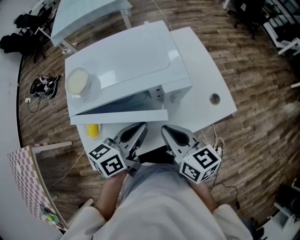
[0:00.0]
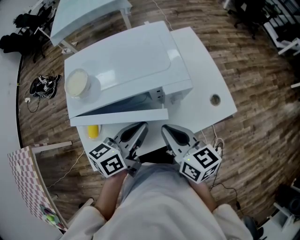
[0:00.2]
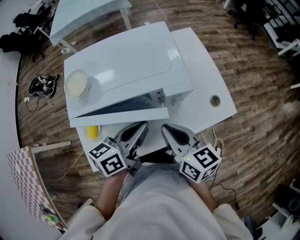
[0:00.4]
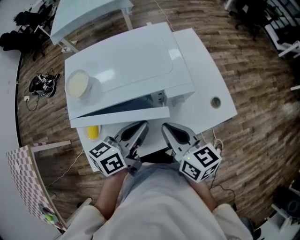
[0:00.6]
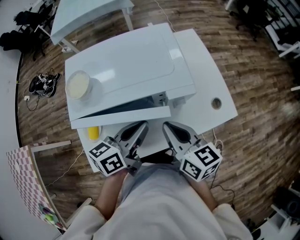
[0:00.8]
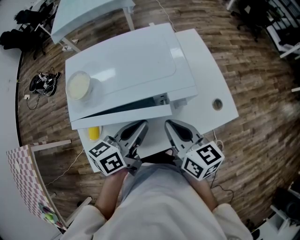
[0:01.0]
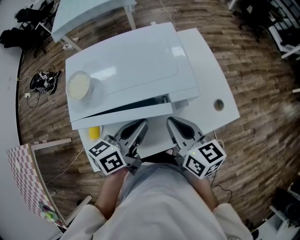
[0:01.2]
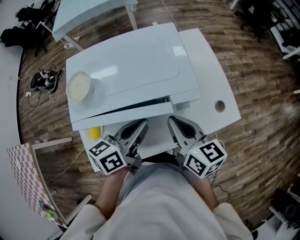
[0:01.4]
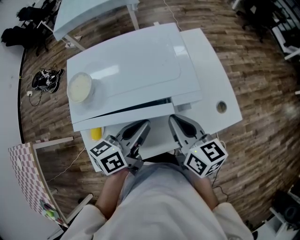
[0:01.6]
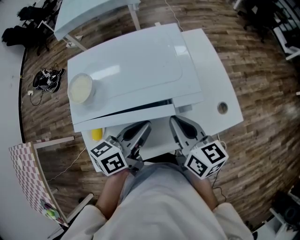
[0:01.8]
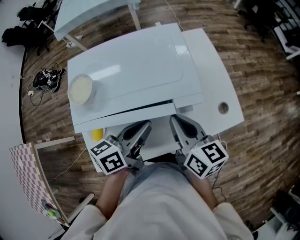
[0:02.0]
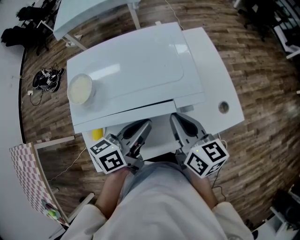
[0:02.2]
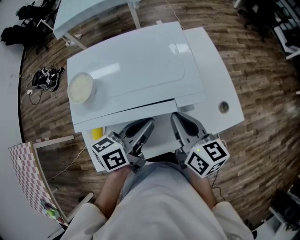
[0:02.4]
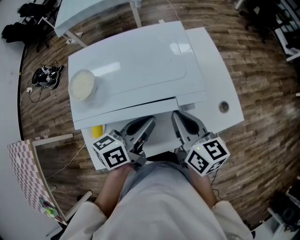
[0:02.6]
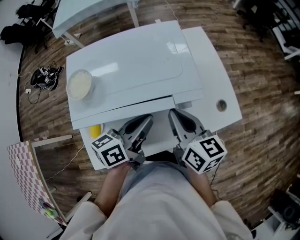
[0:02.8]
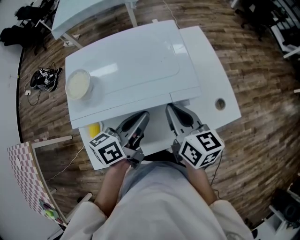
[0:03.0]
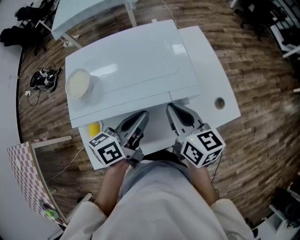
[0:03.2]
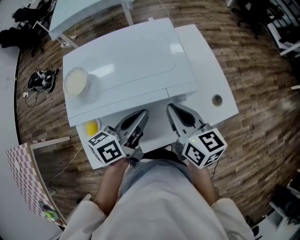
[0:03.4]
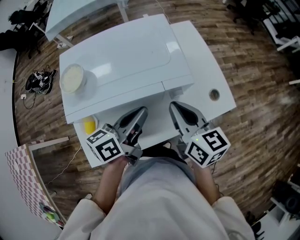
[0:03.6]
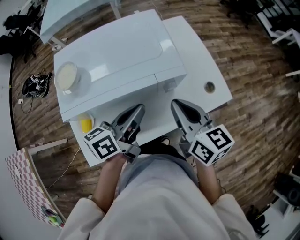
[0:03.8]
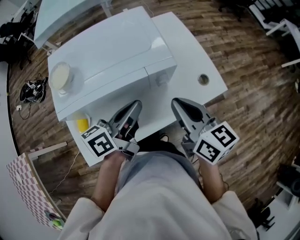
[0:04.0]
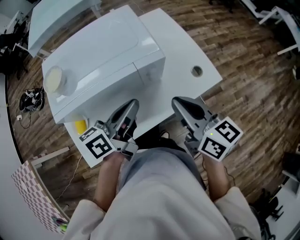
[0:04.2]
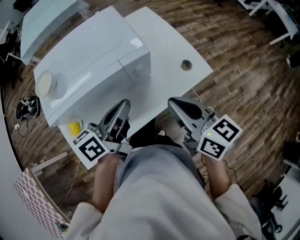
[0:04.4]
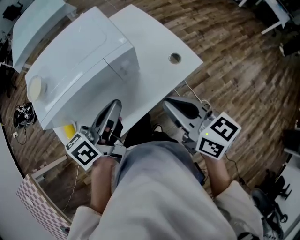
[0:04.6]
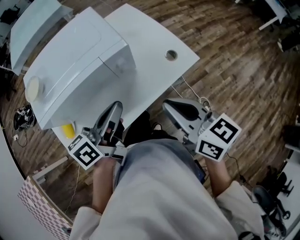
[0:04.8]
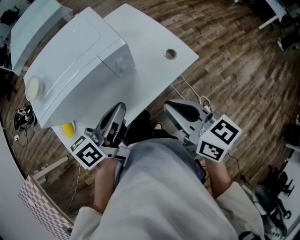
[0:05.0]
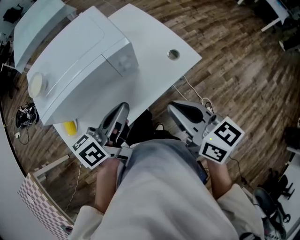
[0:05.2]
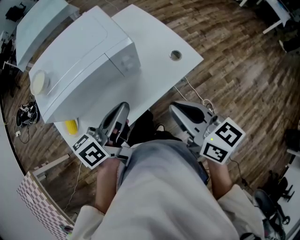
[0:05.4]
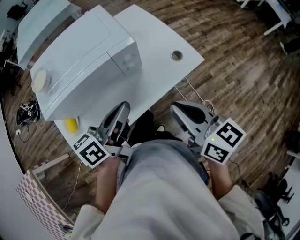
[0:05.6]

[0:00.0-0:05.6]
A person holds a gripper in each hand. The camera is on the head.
0:00.0 to 0:01.4: The right gripper moves forward, approximately 5 cm.
0:01.4 to 0:02.8: The grippers make only small movements.
0:02.8 to 0:04.2: The left gripper moves to the right, roughly 5 cm; the right gripper shifts approximately 15 cm to the right and backward.
0:04.2 to 0:05.6: The left gripper moves backward, about 5 cm. Meanwhile the right gripper heads backward and to the right, covering about 10 cm.

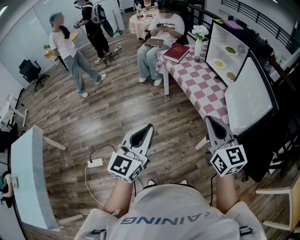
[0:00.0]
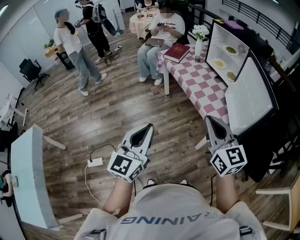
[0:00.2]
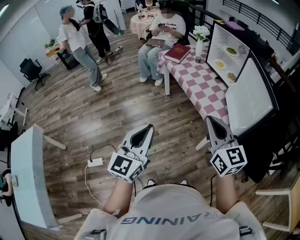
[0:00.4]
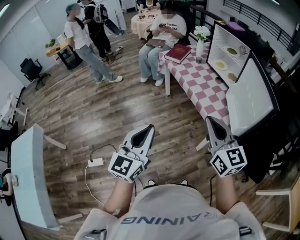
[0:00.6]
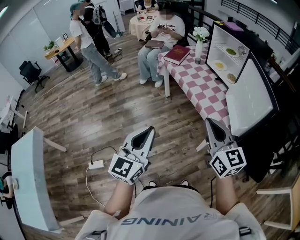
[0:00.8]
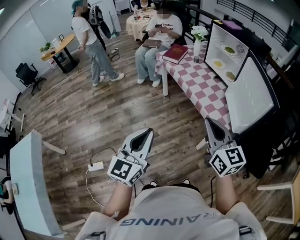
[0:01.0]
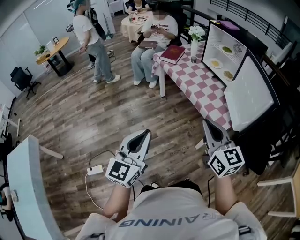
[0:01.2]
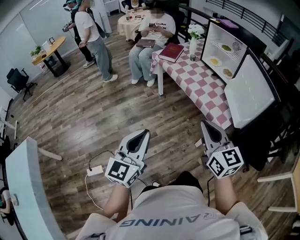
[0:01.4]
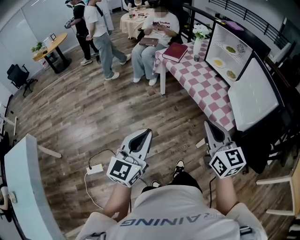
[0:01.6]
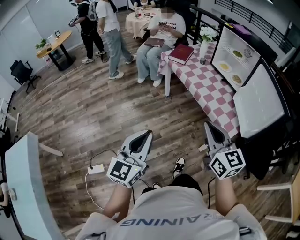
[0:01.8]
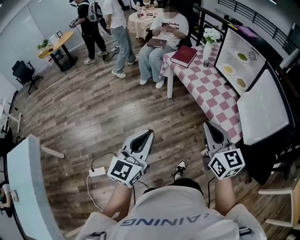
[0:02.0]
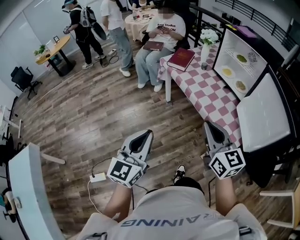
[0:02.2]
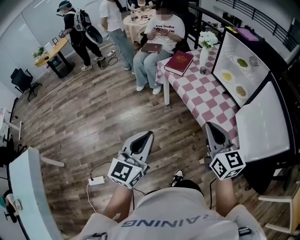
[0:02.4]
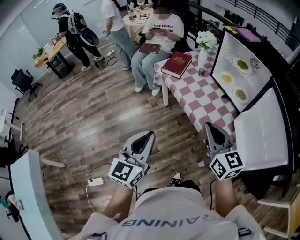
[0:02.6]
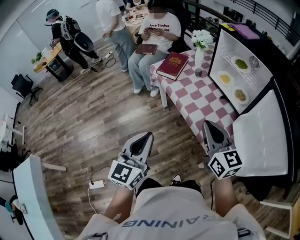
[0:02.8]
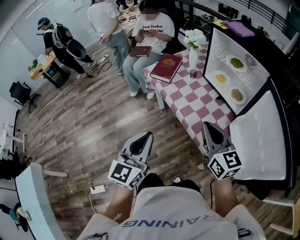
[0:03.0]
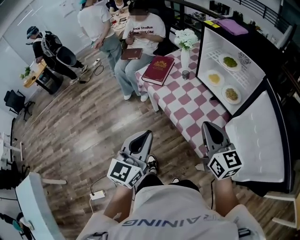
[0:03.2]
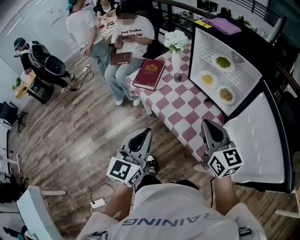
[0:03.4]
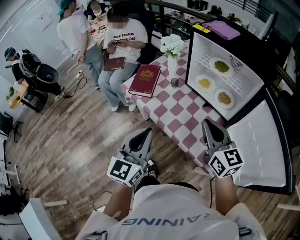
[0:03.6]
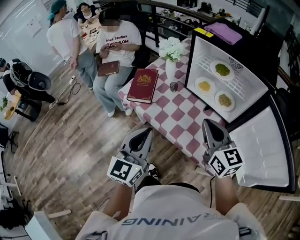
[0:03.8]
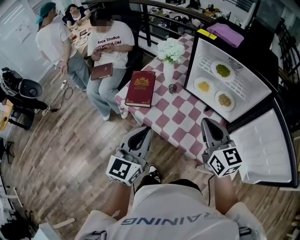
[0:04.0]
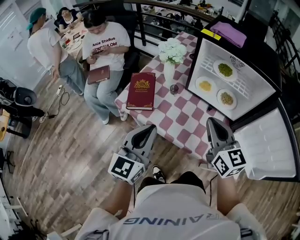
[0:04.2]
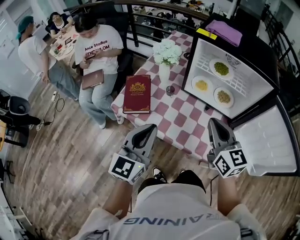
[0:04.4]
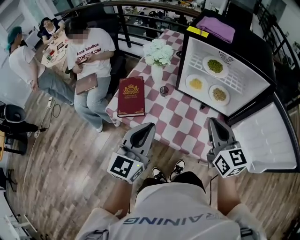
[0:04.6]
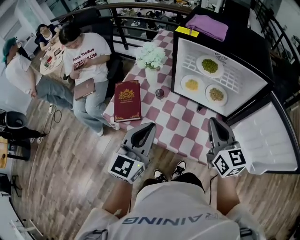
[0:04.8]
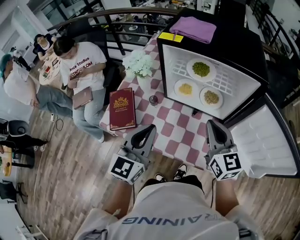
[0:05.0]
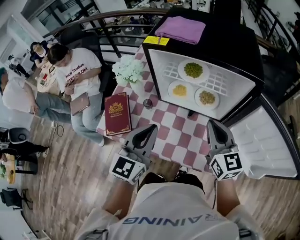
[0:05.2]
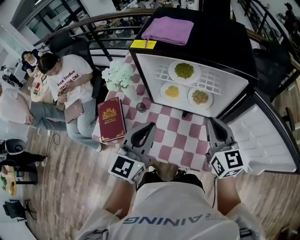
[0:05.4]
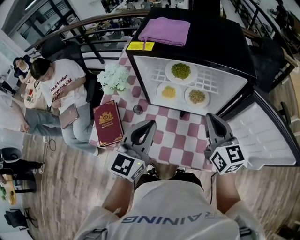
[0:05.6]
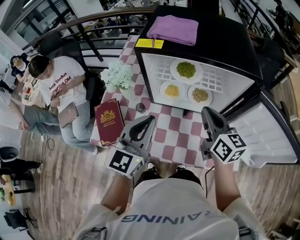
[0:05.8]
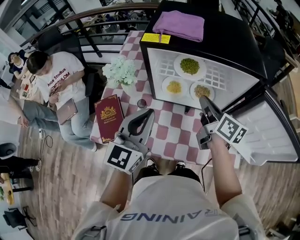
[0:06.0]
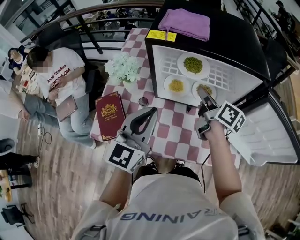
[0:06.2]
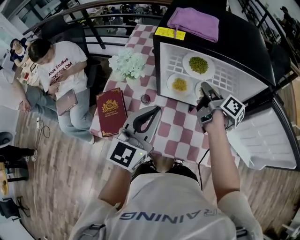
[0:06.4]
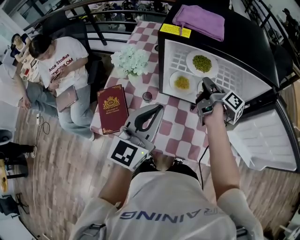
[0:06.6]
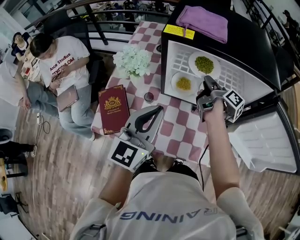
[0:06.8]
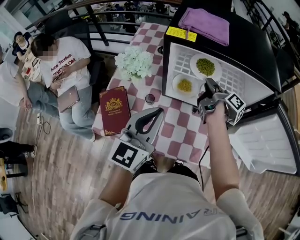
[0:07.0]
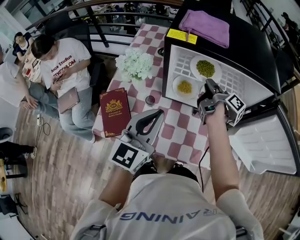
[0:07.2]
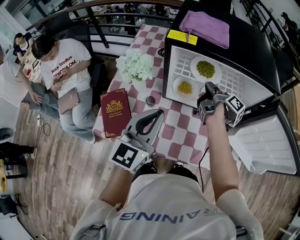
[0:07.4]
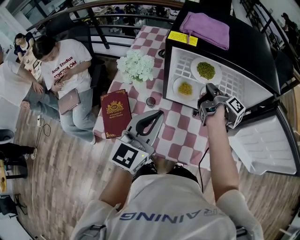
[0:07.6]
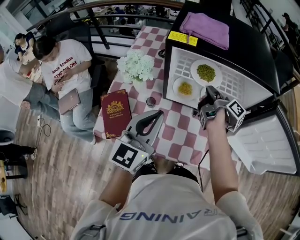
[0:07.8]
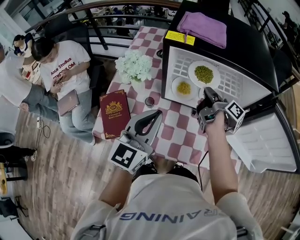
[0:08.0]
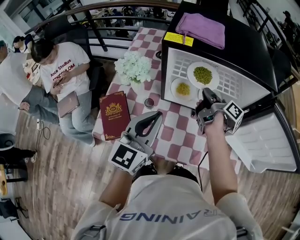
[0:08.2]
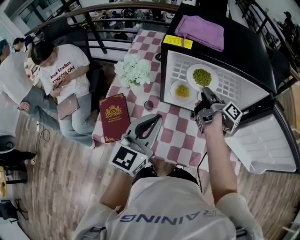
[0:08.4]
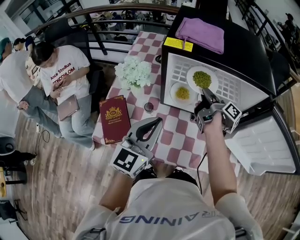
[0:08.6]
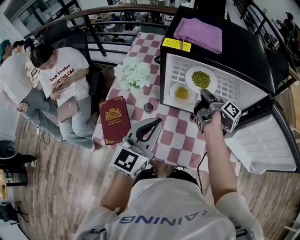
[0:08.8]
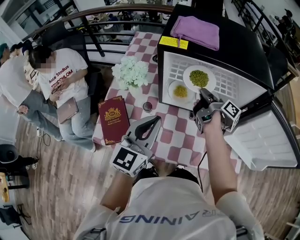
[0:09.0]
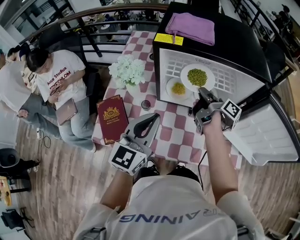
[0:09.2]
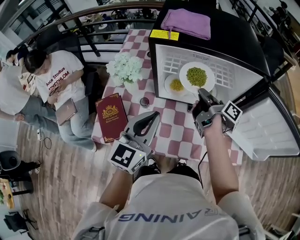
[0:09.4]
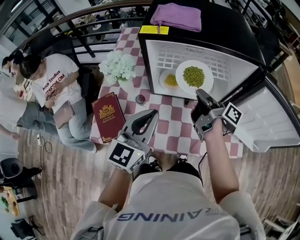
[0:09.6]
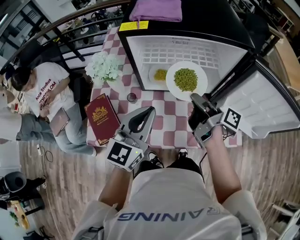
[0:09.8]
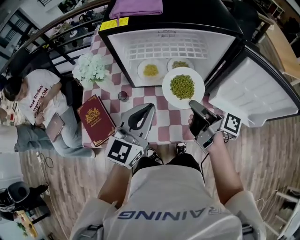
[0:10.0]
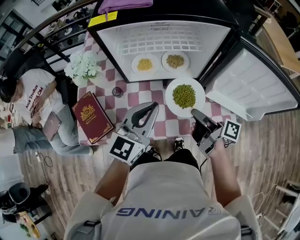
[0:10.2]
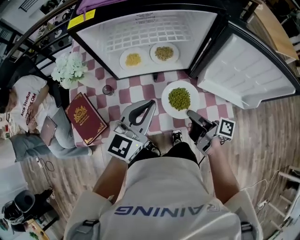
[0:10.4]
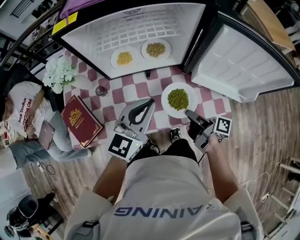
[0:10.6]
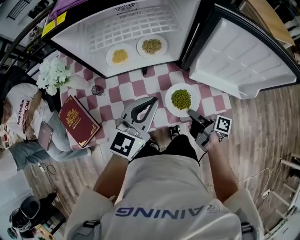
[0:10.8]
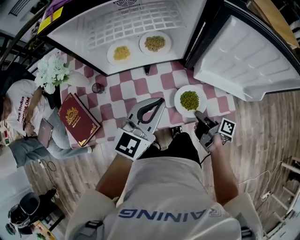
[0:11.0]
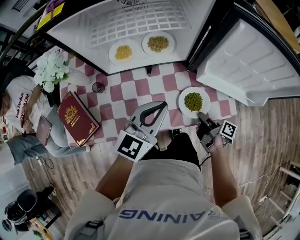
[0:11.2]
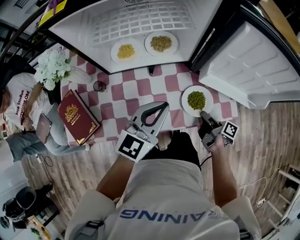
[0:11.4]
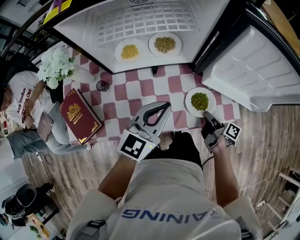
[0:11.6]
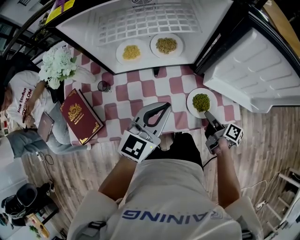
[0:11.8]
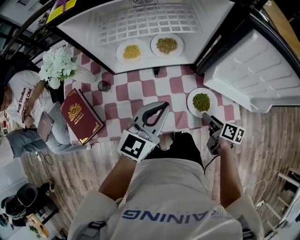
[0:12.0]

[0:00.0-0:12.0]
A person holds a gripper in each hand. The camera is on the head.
0:00.0 to 0:01.6: The two grippers go approximately 10 cm to the left.
0:01.6 to 0:03.0: Both grippers move forward, roughly 30 cm.
0:03.0 to 0:04.4: The right gripper moves about 20 cm, and swivels about 30 degrees, while the left gripper shifts by approximately 30 cm, and rotates roughly 30 degrees.
0:04.4 to 0:06.0: The two grippers go approximately 20 cm forward and to the right. The right gripper rotates roughly 40 degrees.
0:06.0 to 0:07.6: The right gripper travels forward and downward by some 10 cm, and twists roughly 50 degrees clockwise, seen from behind.
0:07.6 to 0:09.0: The grippers stay close to where they were, moving slightly.
0:09.0 to 0:10.4: The right gripper heads backward and to the right, covering some 30 cm, while the left gripper heads to the right and downward, covering roughly 15 cm, and rotates roughly 20 degrees.
0:10.4 to 0:12.0: The right gripper travels downward and to the right by about 15 cm, turns by some 40 degrees, and opens its fingers; the left gripper shifts some 5 cm downward.

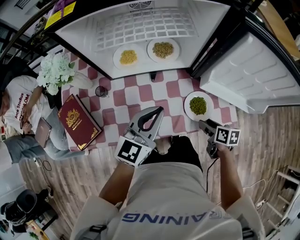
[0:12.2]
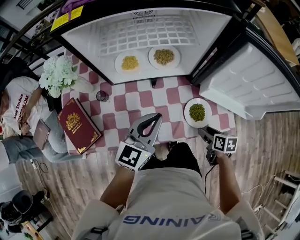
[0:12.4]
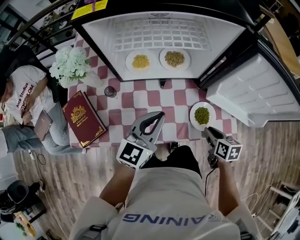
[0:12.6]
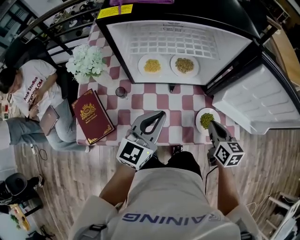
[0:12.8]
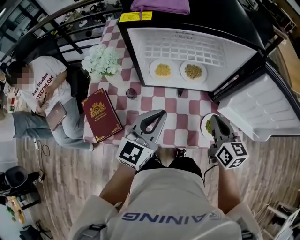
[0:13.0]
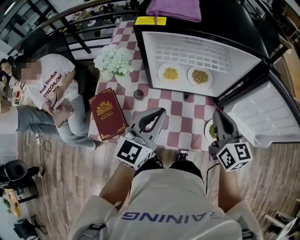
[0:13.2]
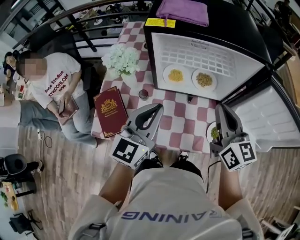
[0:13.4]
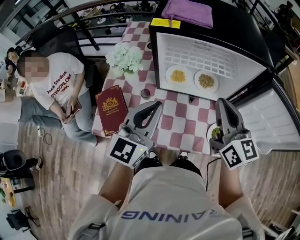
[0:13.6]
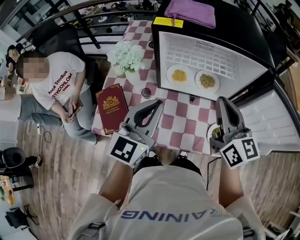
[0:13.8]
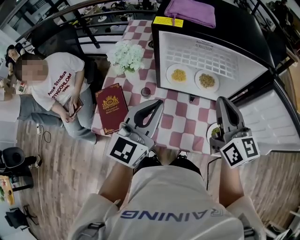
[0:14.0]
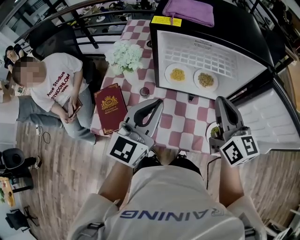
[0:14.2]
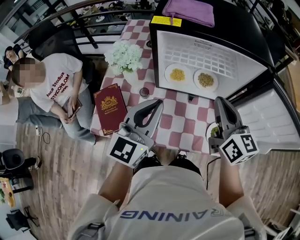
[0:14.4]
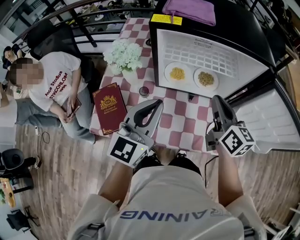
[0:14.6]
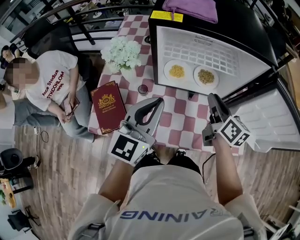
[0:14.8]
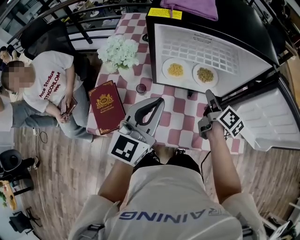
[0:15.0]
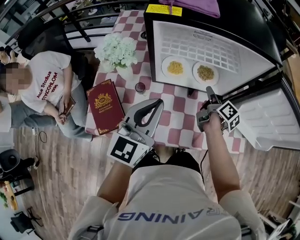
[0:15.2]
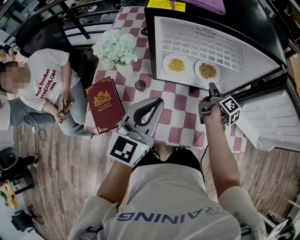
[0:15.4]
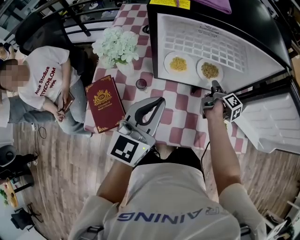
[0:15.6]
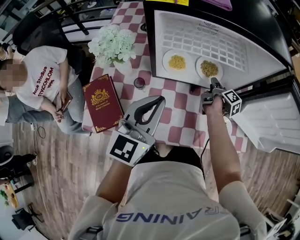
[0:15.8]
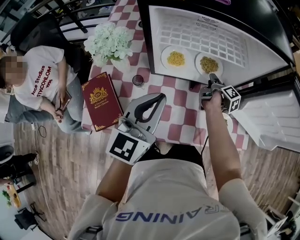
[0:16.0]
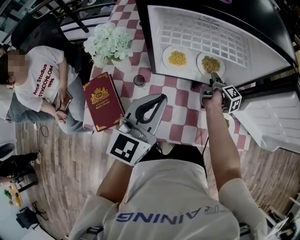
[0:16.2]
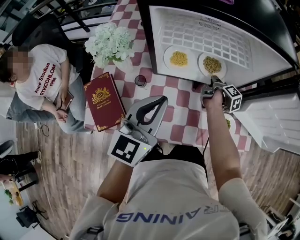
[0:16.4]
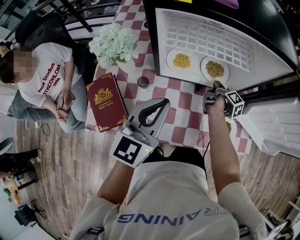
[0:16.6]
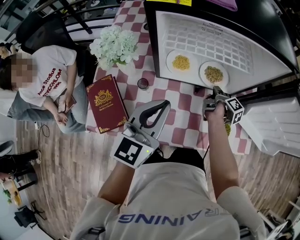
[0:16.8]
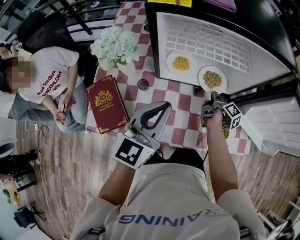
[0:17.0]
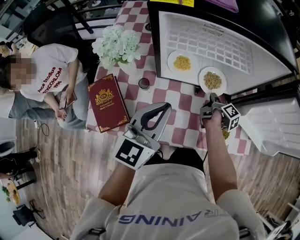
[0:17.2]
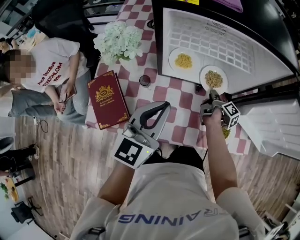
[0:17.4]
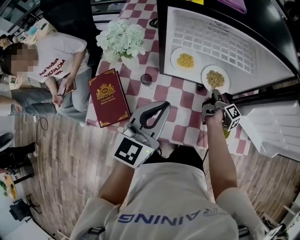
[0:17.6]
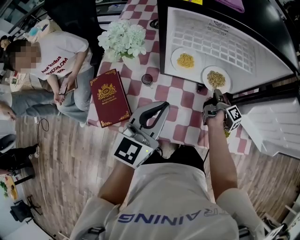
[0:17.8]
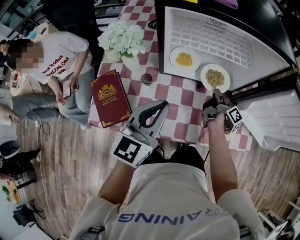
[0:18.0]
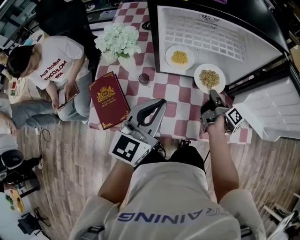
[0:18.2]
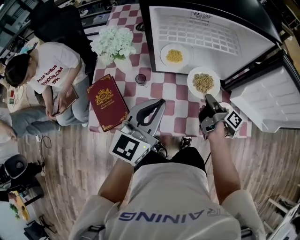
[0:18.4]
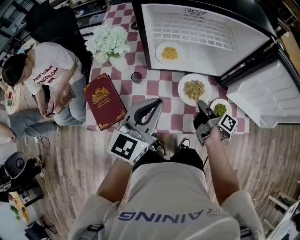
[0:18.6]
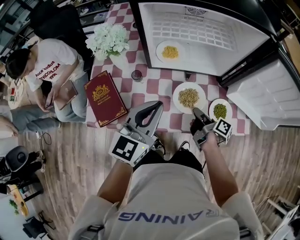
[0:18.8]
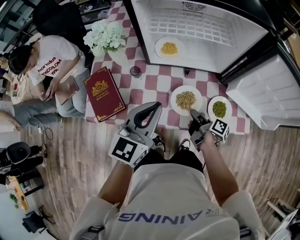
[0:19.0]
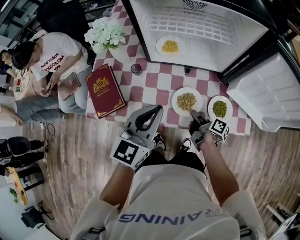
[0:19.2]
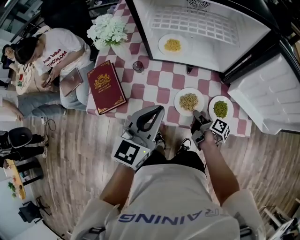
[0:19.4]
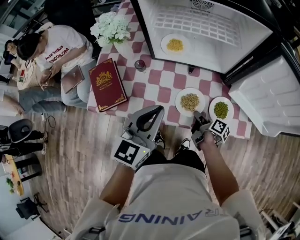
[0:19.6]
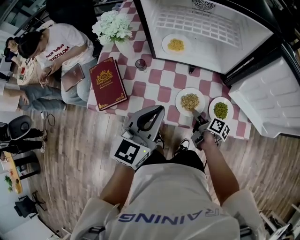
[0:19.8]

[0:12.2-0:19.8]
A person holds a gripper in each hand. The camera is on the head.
0:12.2 to 0:13.8: The right gripper travels upward and to the left by approximately 40 cm, tilts its fingers some 50 degrees upward, and closes up, while the left gripper travels to the left and upward by approximately 20 cm, and swivels some 20 degrees.
0:13.8 to 0:15.2: The right gripper goes about 25 cm downward and forward, twists some 60 degrees clockwise, seen from behind, and opens its fingers.
0:15.2 to 0:16.8: The right gripper goes about 10 cm downward, swivels some 30 degrees, and closes.
0:16.8 to 0:18.2: The right gripper is displaced backward and upward by some 10 cm.
0:18.2 to 0:19.8: The left gripper travels backward and to the right by roughly 10 cm. Meanwhile the right gripper heads backward and downward, covering some 20 cm, turns by some 40 degrees, and opens up.
